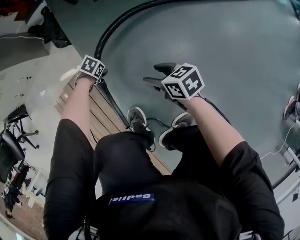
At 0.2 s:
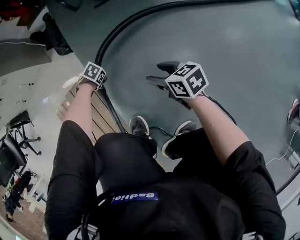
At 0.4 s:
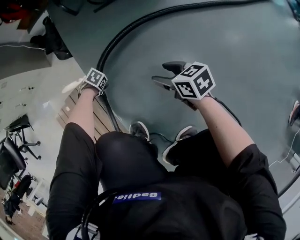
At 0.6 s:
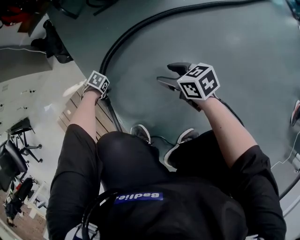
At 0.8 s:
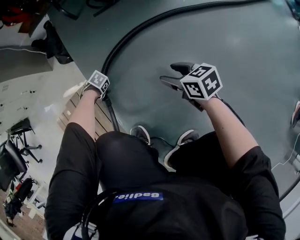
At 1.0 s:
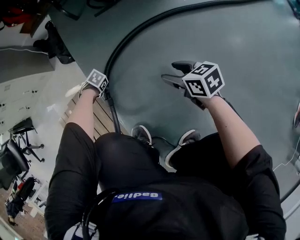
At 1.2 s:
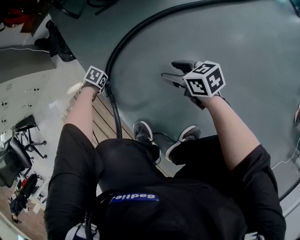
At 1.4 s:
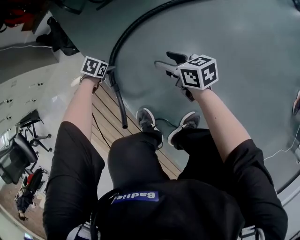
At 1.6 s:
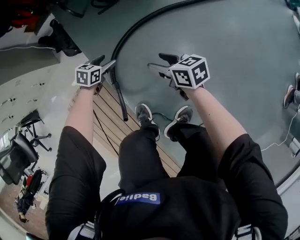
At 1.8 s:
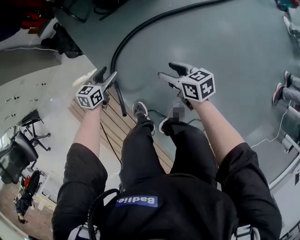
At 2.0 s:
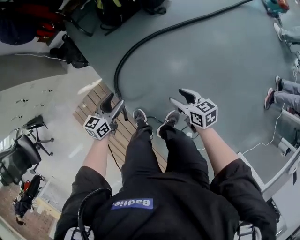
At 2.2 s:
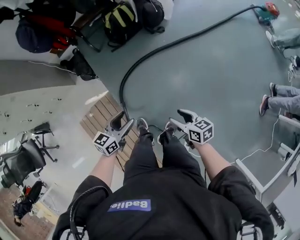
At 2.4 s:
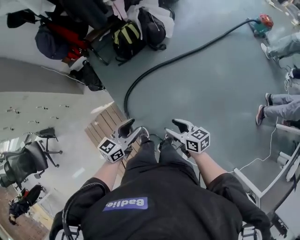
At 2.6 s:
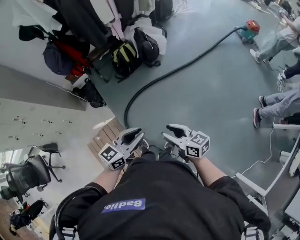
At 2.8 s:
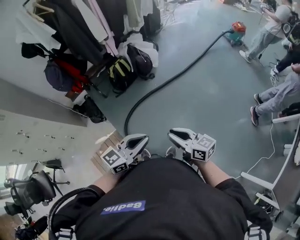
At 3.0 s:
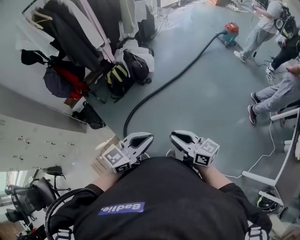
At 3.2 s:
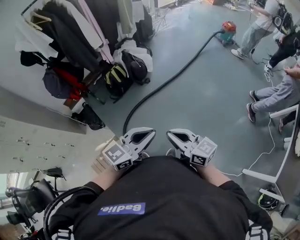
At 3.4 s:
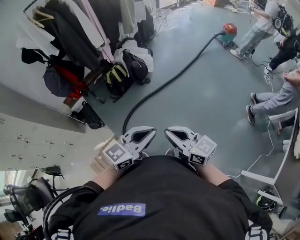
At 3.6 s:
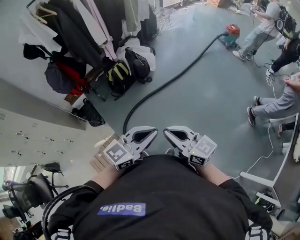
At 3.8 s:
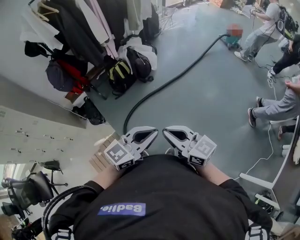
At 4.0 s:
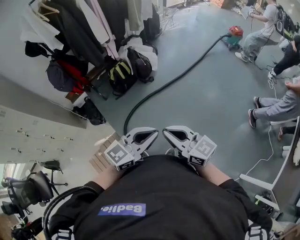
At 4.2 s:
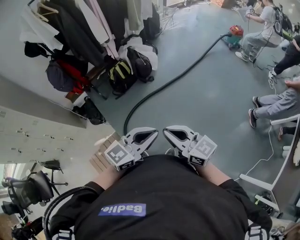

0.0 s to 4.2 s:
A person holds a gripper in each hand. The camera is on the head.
0.0 to 1.4 s: The right gripper moves roughly 10 cm, while the left gripper moves about 10 cm.
1.4 to 2.8 s: The two grippers go about 80 cm upward. The left gripper tips its fingers upward by approximately 70 degrees, and closes; the right gripper turns by approximately 30 degrees, and closes up.
2.8 to 4.2 s: The two grippers go about 10 cm upward.

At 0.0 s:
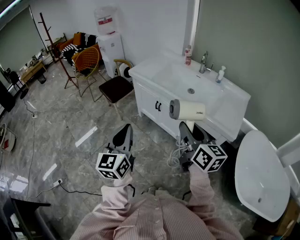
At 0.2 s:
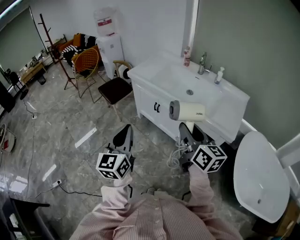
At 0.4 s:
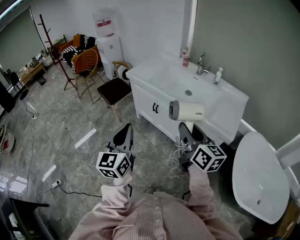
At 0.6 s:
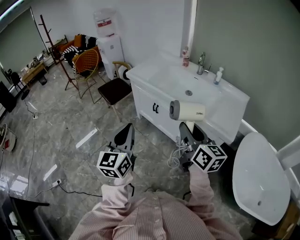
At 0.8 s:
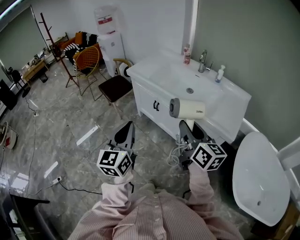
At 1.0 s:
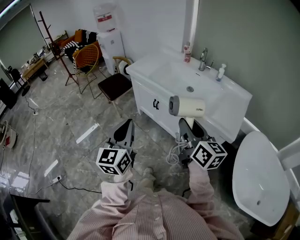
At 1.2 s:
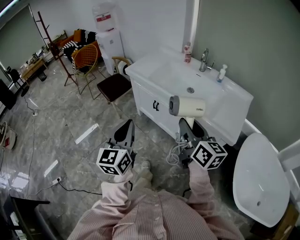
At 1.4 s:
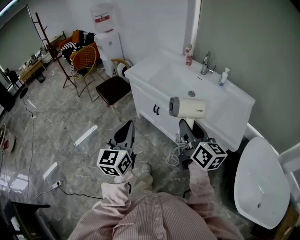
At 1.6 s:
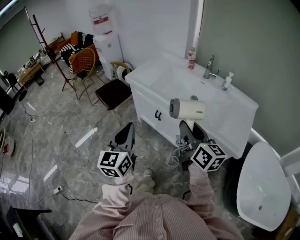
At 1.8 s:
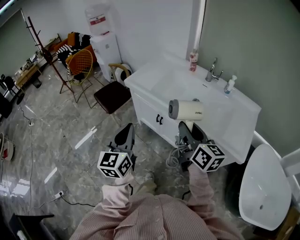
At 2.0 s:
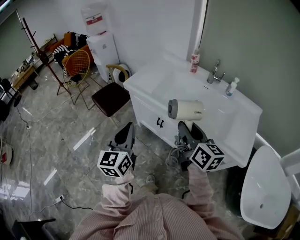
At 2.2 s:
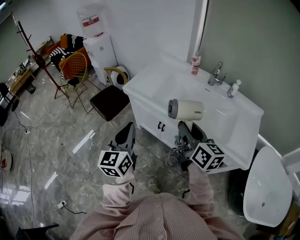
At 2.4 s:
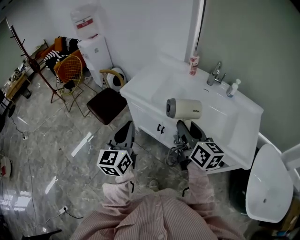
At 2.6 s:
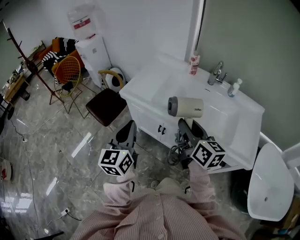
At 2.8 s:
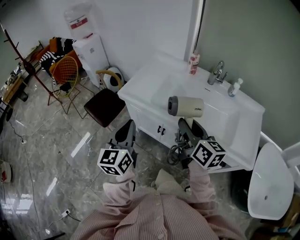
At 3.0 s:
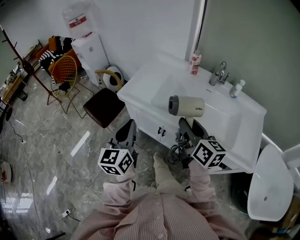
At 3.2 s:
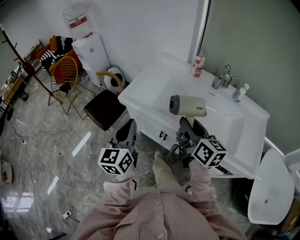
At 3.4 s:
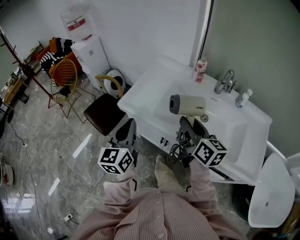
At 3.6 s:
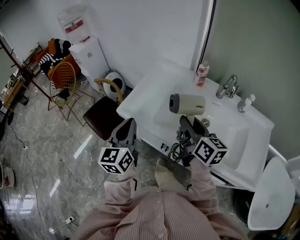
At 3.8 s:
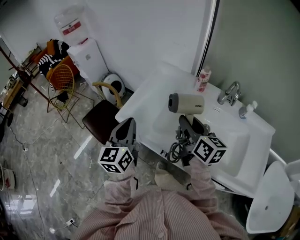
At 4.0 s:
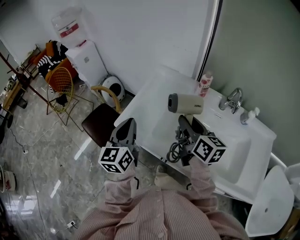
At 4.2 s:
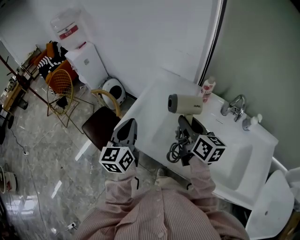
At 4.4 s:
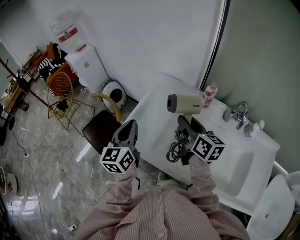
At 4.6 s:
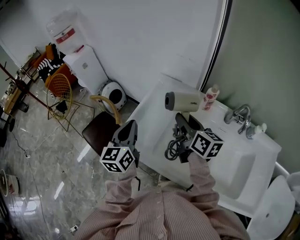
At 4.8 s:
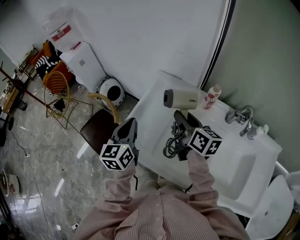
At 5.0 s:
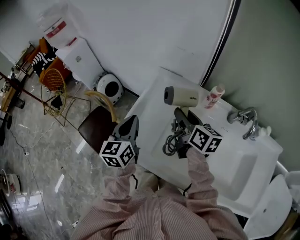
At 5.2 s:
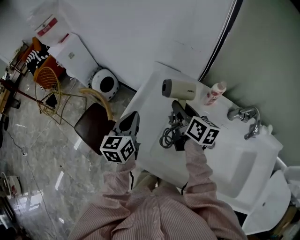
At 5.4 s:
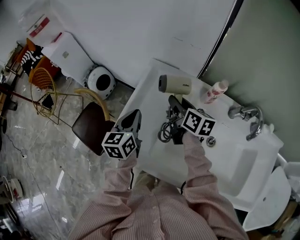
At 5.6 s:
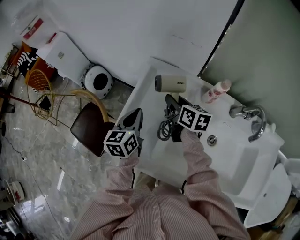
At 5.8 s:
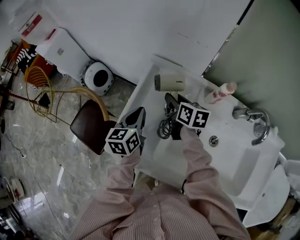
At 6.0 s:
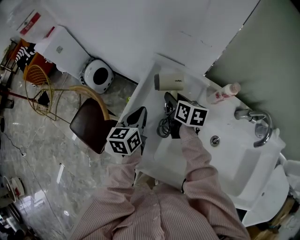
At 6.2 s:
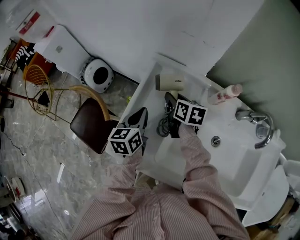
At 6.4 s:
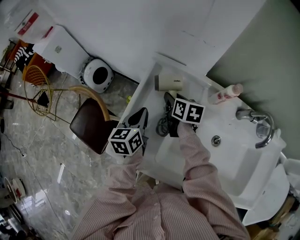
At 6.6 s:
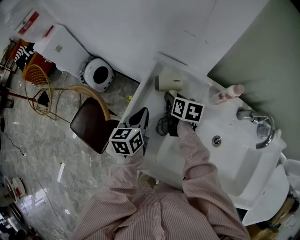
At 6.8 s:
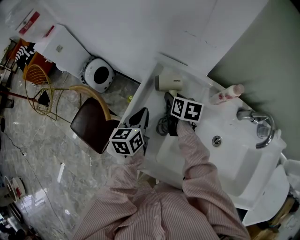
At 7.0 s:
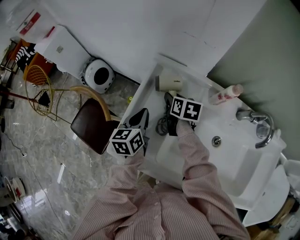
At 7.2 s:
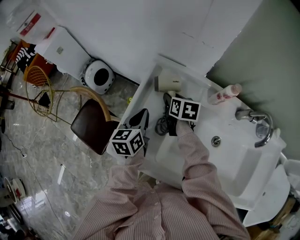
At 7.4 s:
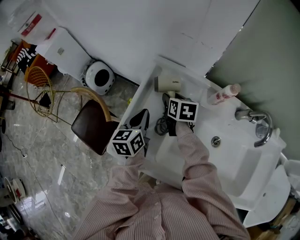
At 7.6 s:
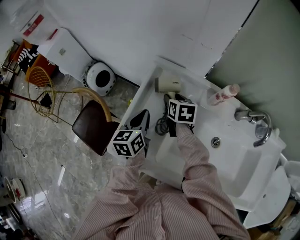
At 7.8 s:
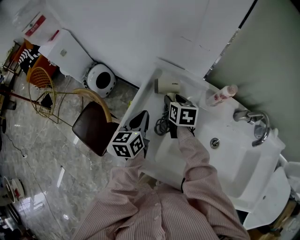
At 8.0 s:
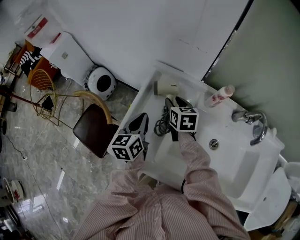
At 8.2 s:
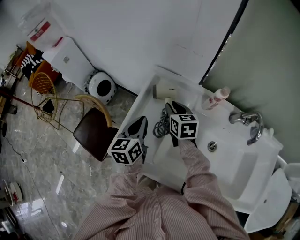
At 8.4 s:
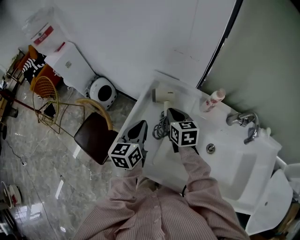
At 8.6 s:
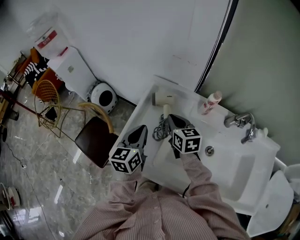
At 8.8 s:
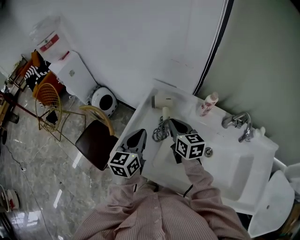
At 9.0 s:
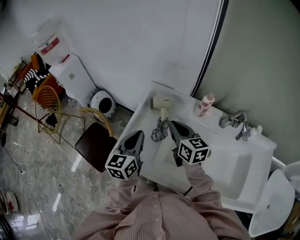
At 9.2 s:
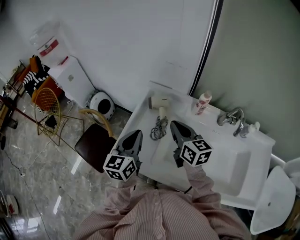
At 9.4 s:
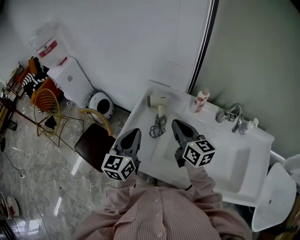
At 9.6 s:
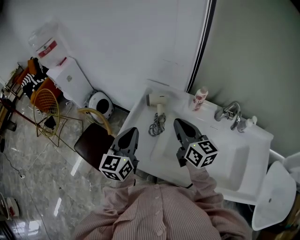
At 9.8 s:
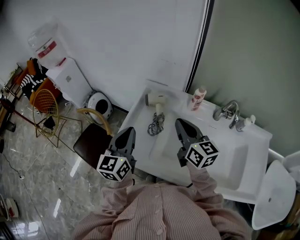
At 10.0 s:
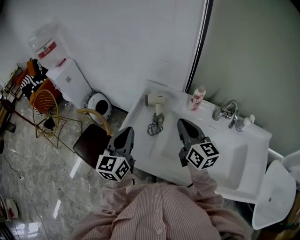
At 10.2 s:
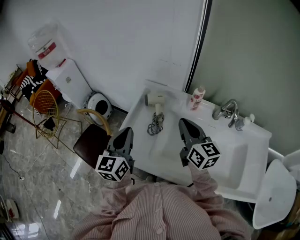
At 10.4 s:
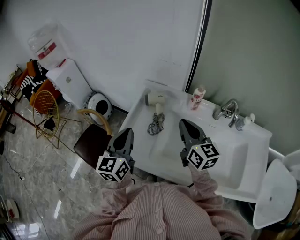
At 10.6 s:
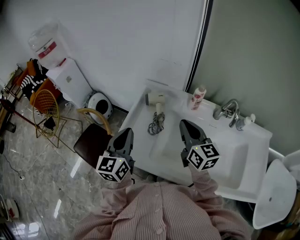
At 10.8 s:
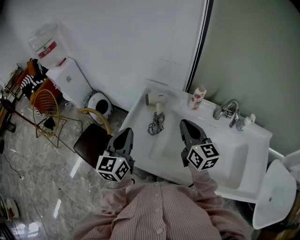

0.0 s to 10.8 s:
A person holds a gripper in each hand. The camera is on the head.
0.0 to 1.6 s: The two grippers go about 15 cm forward.
1.6 to 3.0 s: Both grippers travel together forward, about 25 cm.
3.0 to 4.6 s: Both grippers move forward, approximately 35 cm.
4.6 to 6.2 s: The grippers both shift downward and forward by roughly 25 cm. The right gripper swivels roughly 30 degrees; the left gripper swivels some 20 degrees.
6.2 to 7.8 s: The grippers move only a little.
7.8 to 9.2 s: Both grippers travel together upward and backward, about 20 cm. The right gripper rotates about 30 degrees, and closes.
9.2 to 10.8 s: The right gripper moves roughly 5 cm.

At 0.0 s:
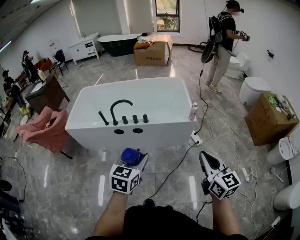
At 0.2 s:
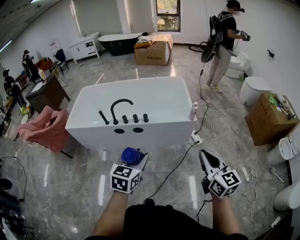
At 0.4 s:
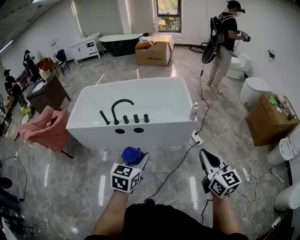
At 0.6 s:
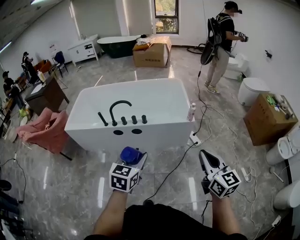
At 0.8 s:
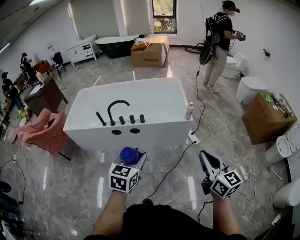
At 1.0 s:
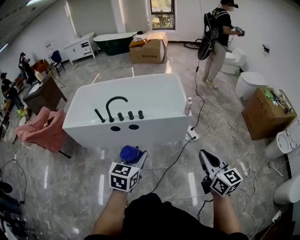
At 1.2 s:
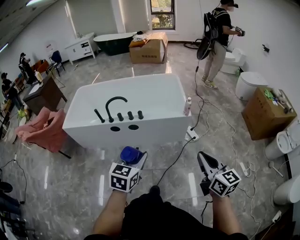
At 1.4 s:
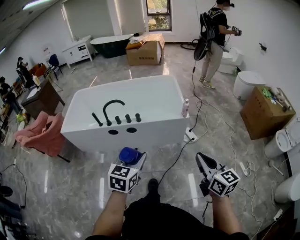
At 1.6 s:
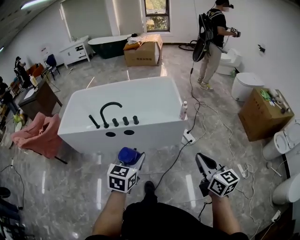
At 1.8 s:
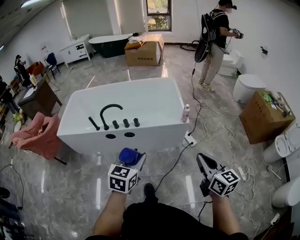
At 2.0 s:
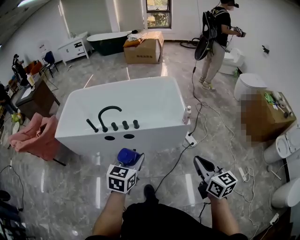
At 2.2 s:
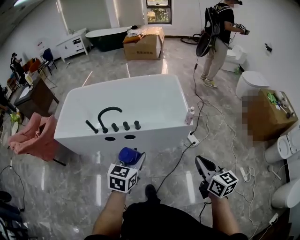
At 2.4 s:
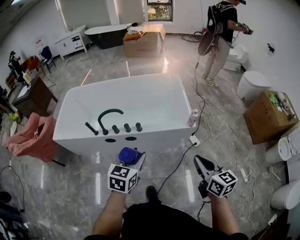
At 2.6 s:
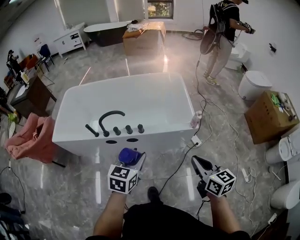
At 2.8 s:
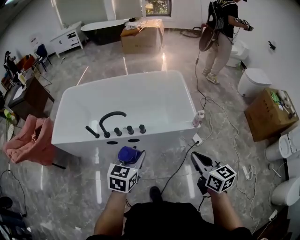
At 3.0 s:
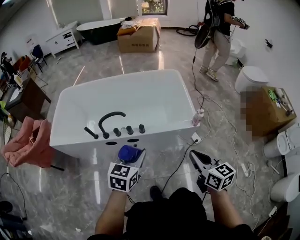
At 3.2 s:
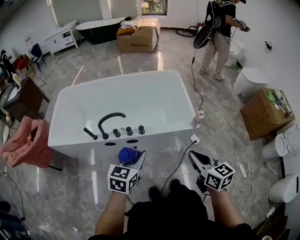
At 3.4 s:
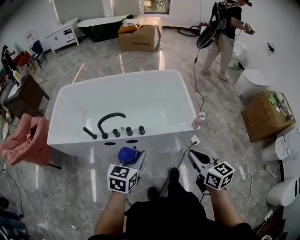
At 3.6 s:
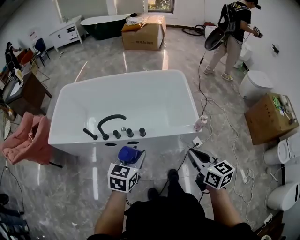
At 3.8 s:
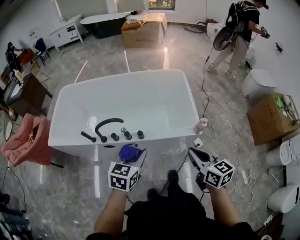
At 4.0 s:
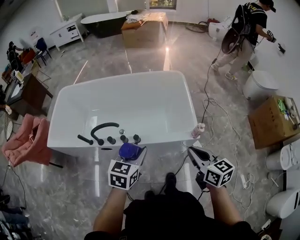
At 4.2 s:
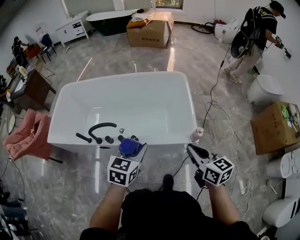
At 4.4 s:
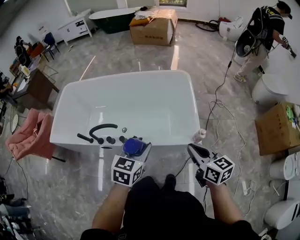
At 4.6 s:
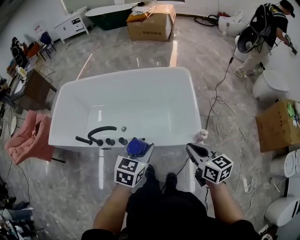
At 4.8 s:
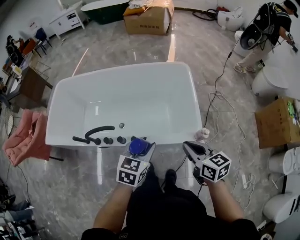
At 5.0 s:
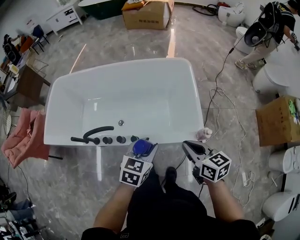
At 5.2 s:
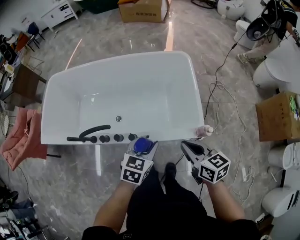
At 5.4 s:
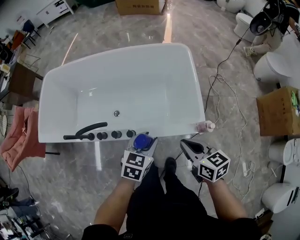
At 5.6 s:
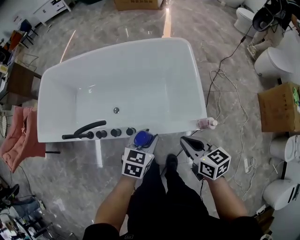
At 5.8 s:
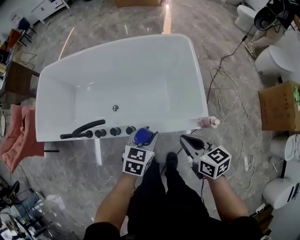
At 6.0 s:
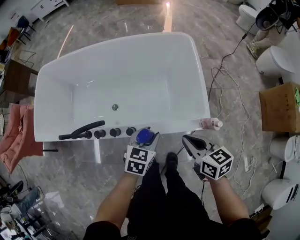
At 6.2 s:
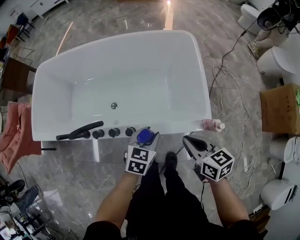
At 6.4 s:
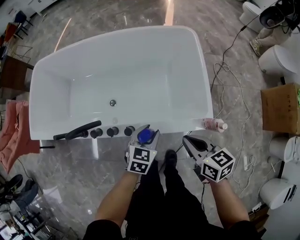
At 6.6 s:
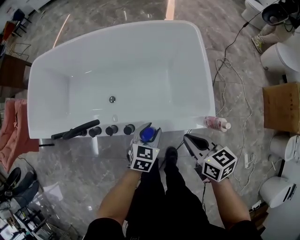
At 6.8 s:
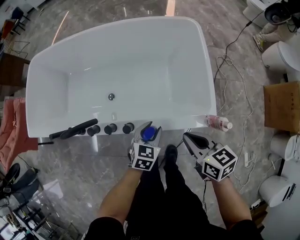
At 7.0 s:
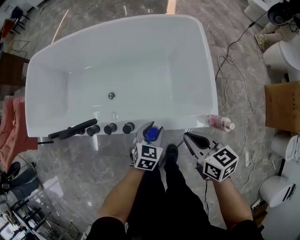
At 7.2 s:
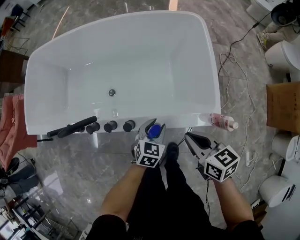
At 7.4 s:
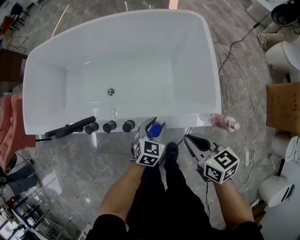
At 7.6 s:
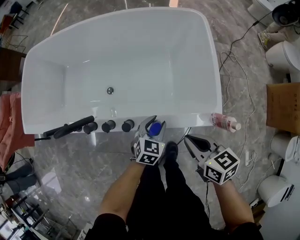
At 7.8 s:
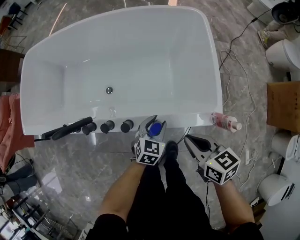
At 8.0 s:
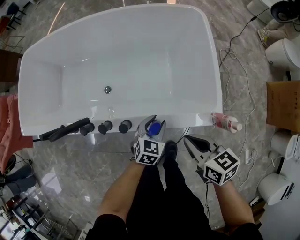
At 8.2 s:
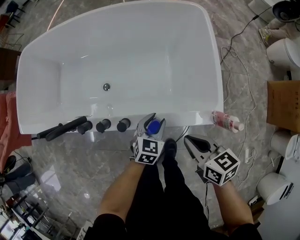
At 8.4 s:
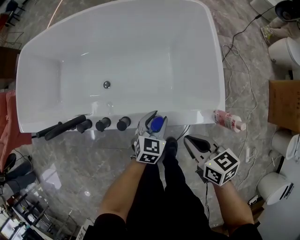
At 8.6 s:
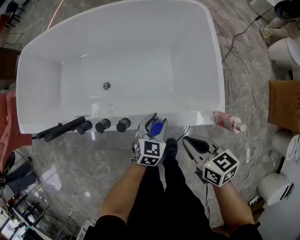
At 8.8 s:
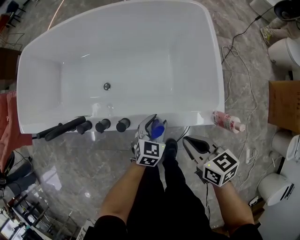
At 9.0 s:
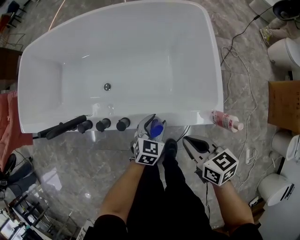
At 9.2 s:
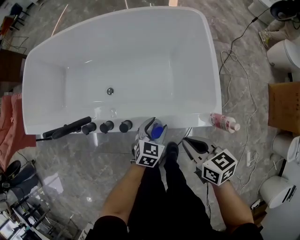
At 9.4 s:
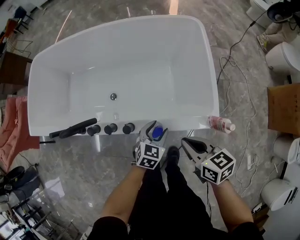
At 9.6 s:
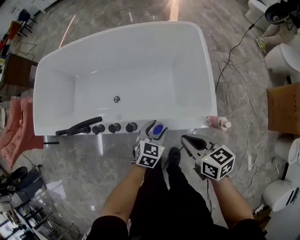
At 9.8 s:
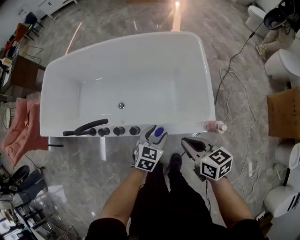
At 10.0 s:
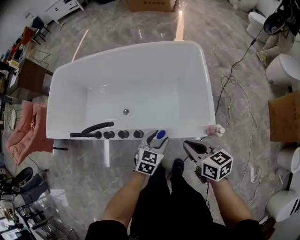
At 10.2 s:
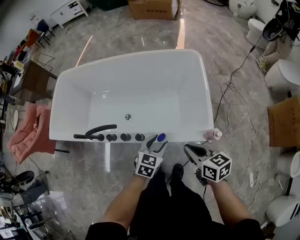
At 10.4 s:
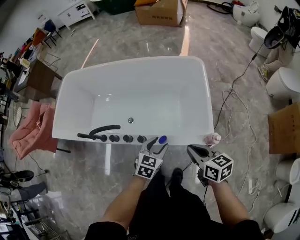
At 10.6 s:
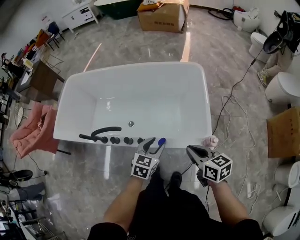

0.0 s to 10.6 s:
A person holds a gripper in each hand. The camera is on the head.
0.0 to 1.6 s: The right gripper changes place by some 5 cm.
1.6 to 3.0 s: The two grippers go about 25 cm forward and to the left.
3.0 to 4.6 s: The left gripper goes about 20 cm forward and to the right; the right gripper goes approximately 20 cm forward.
4.6 to 6.0 s: The grippers both shift downward and forward by roughly 15 cm.
6.0 to 7.6 s: The left gripper travels downward by about 15 cm, while the right gripper travels downward by approximately 10 cm.
7.6 to 9.0 s: The grippers make only small movements.
9.0 to 10.6 s: The grippers both shift upward by approximately 20 cm.
